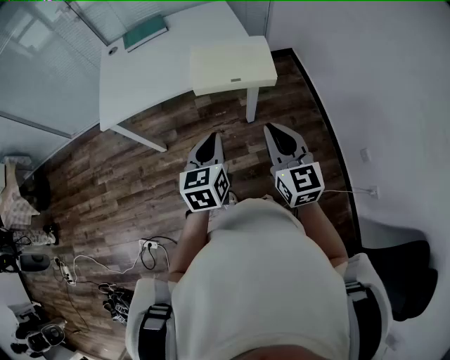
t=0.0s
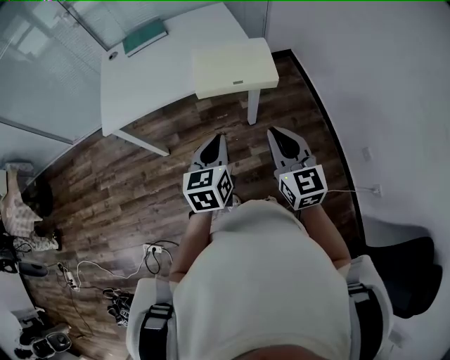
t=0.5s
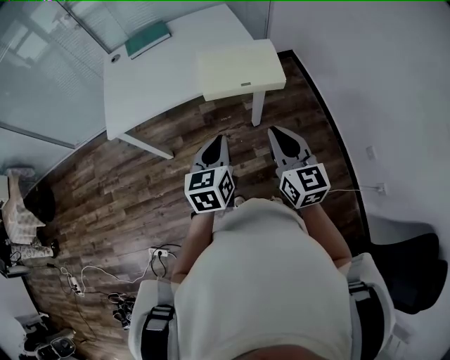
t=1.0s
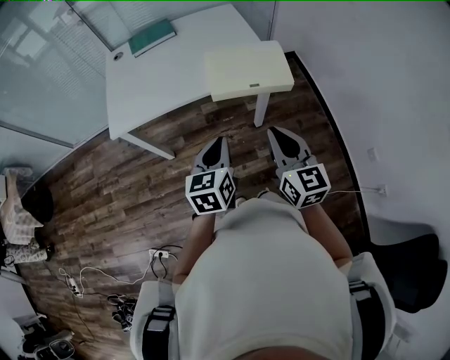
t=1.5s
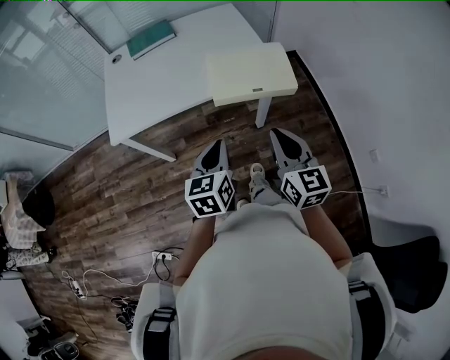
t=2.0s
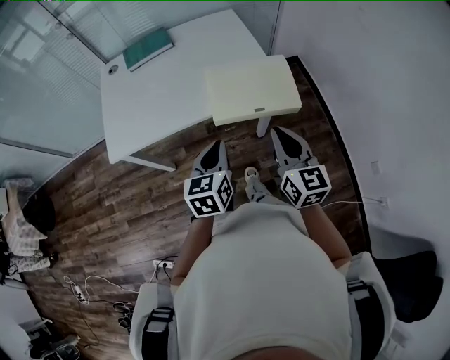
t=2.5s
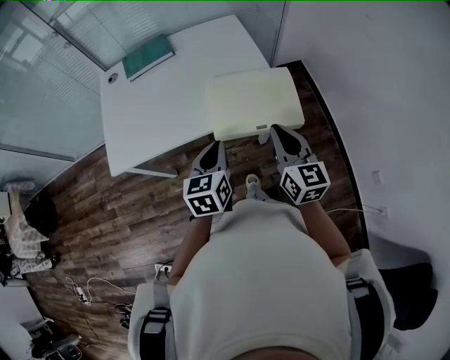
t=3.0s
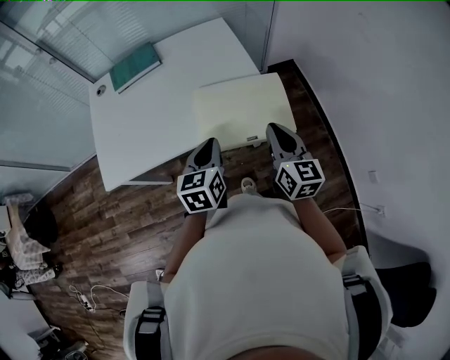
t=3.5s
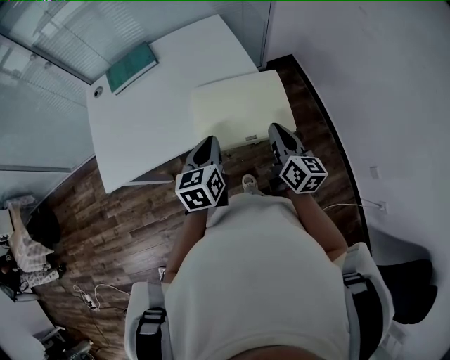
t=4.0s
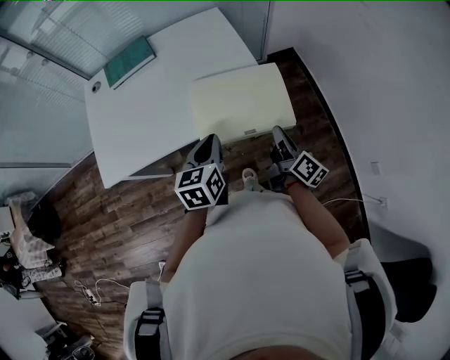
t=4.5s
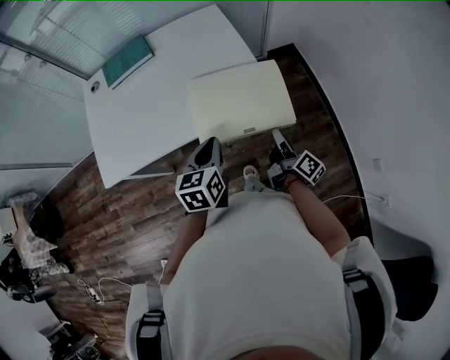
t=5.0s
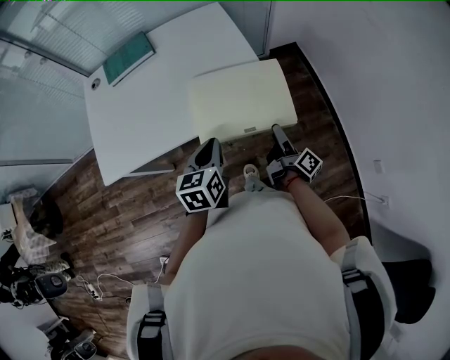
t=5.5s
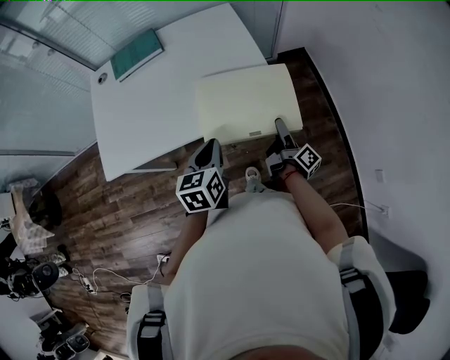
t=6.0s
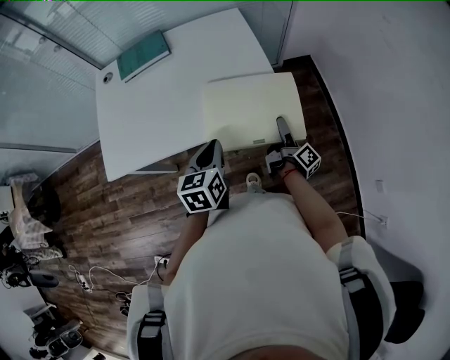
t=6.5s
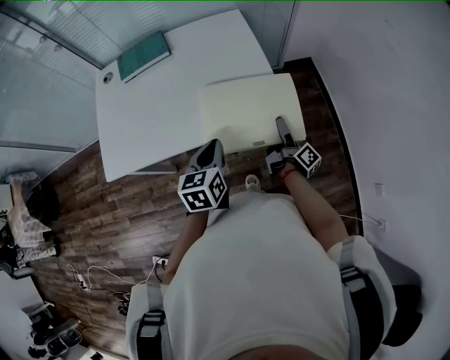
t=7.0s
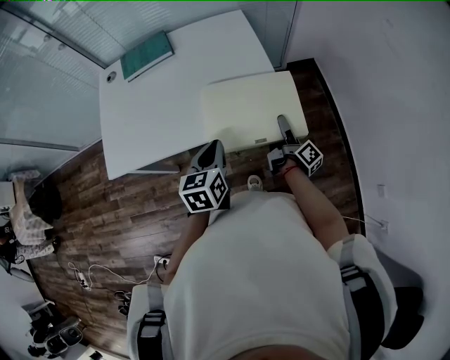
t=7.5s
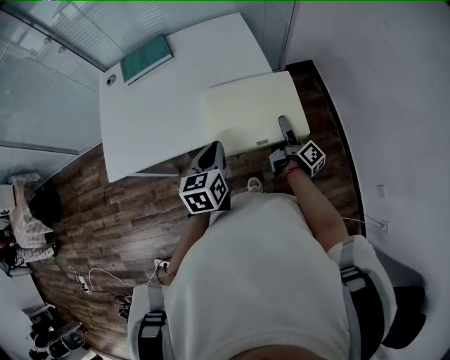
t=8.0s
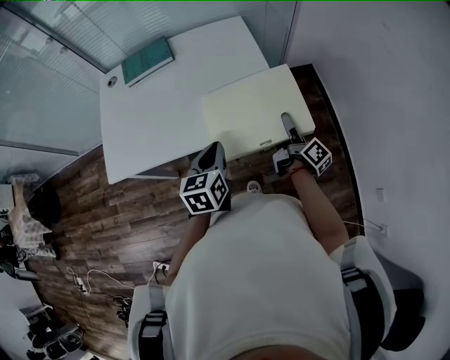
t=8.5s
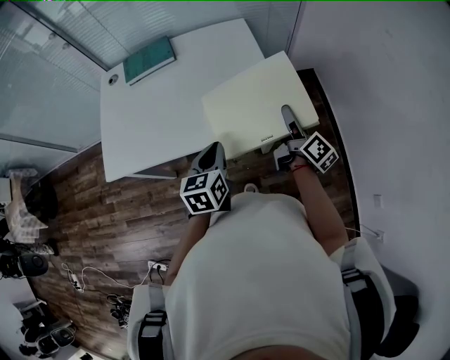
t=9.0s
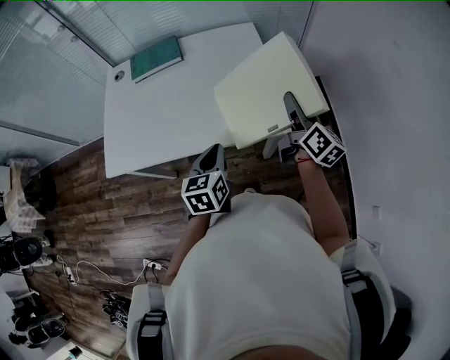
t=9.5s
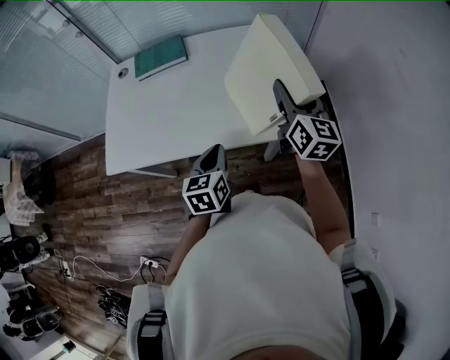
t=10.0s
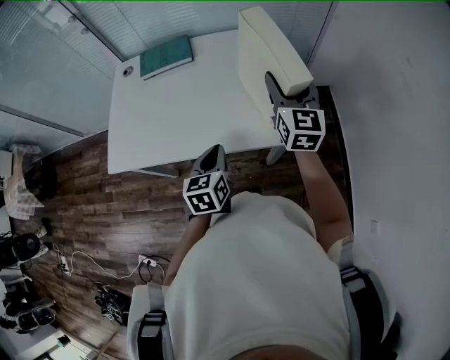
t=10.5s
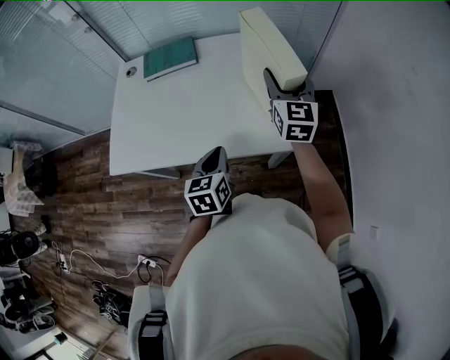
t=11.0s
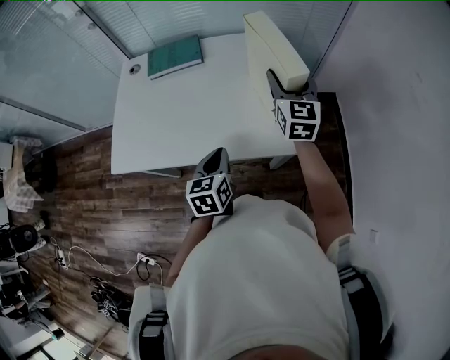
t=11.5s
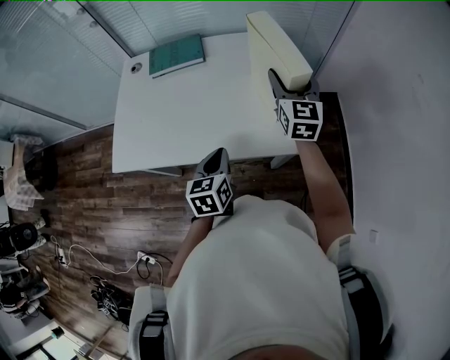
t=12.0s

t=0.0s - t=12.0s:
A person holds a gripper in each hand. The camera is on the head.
t=0.0s - t=2.0s: The two grippers go approximately 5 cm to the left.
t=2.0s - t=4.0s: Both grippers move forward, approximately 20 cm. The right gripper changes its angle by about 30 degrees.
t=4.0s - t=6.0s: The right gripper moves downward, about 15 cm, rotates around the line of its fingers by approximately 60 degrees, clockwise from behind, and opens its fingers.
t=6.0s - t=8.0s: The right gripper ends up approximately 5 cm from where it was, and closes its fingers.
t=8.0s - t=10.0s: The right gripper moves upward and forward, roughly 25 cm, and twists roughly 70 degrees counterclockwise, seen from behind.
t=10.0s - t=12.0s: The right gripper moves forward and to the left, about 10 cm, and rotates about 20 degrees.

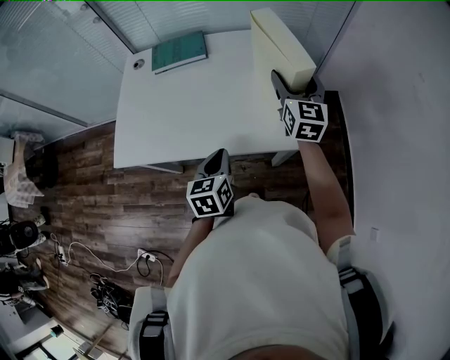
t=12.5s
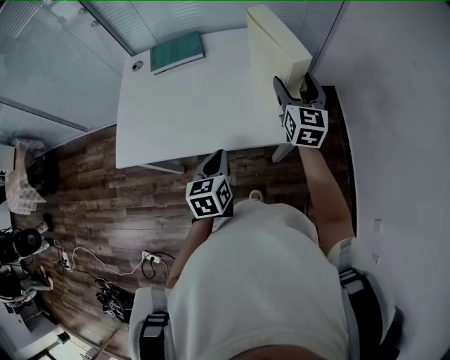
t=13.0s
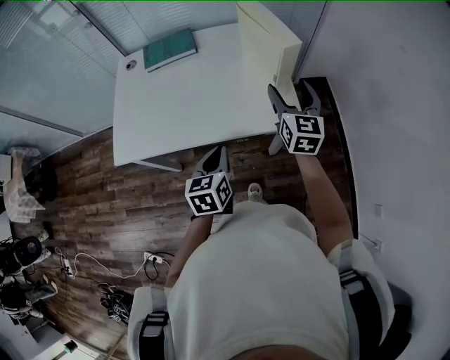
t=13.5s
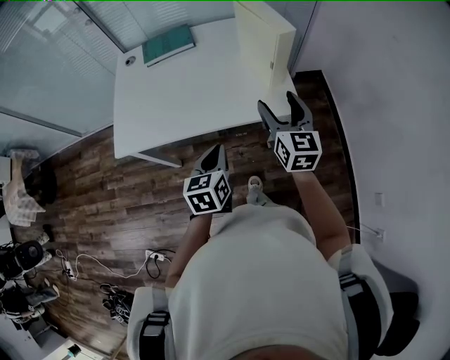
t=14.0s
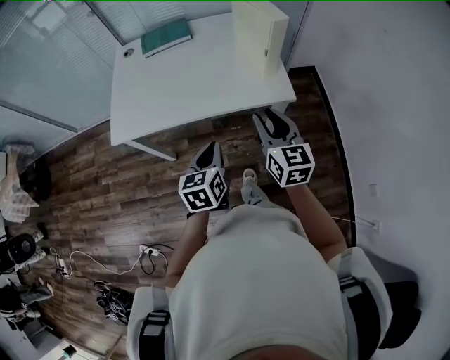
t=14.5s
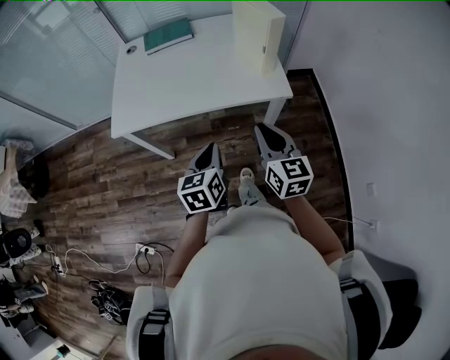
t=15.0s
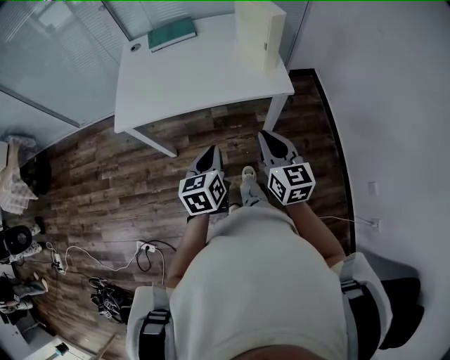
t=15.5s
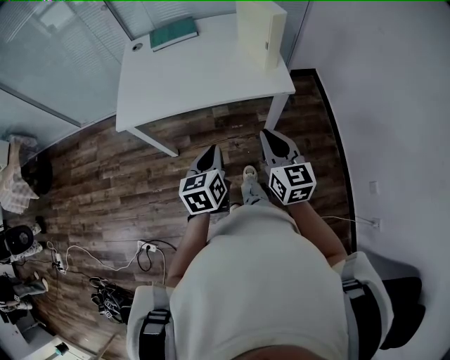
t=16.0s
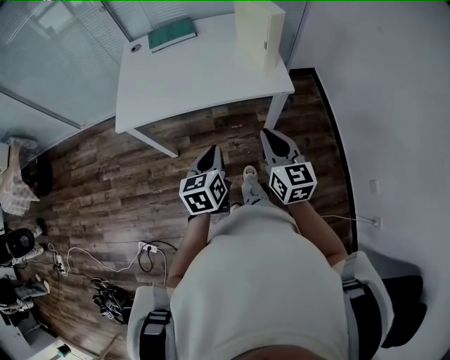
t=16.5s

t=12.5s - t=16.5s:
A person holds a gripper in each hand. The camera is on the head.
t=12.5s - t=14.5s: The left gripper is displaced backward by approximately 15 cm, while the right gripper travels backward by about 30 cm, and closes.
t=14.5s - t=16.5s: Both grippers travel together backward, some 10 cm.

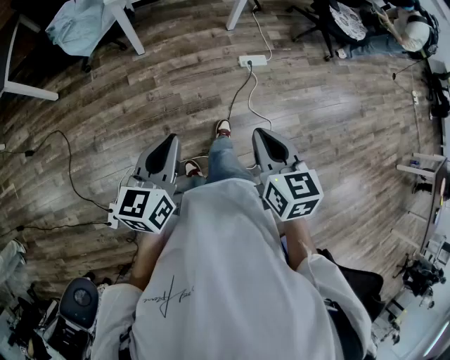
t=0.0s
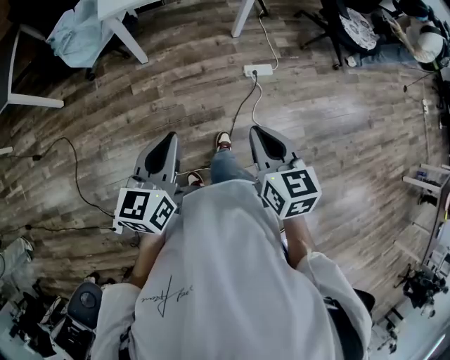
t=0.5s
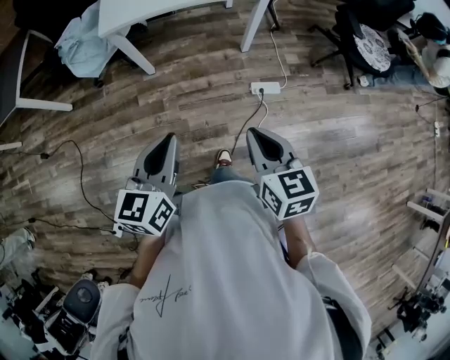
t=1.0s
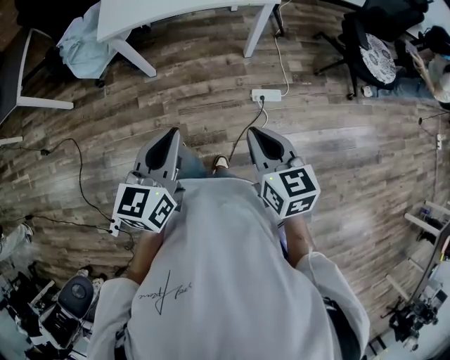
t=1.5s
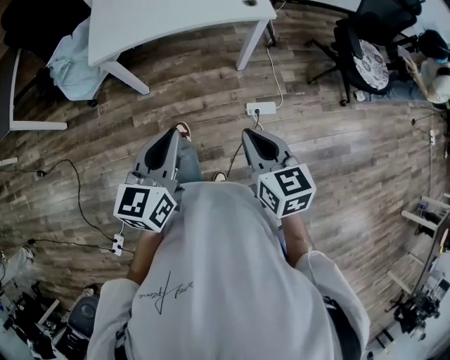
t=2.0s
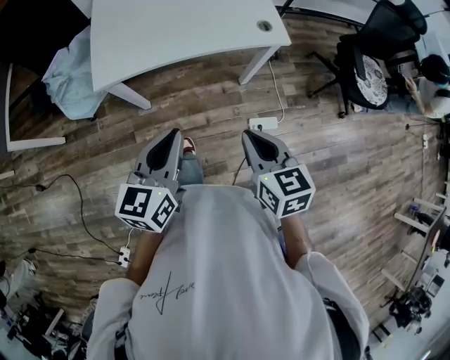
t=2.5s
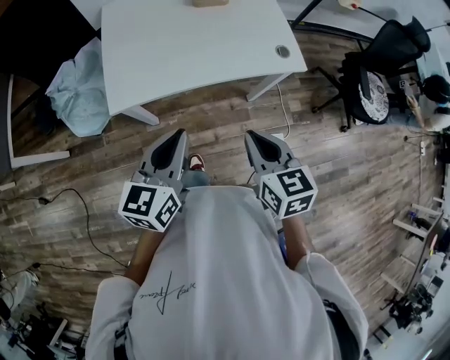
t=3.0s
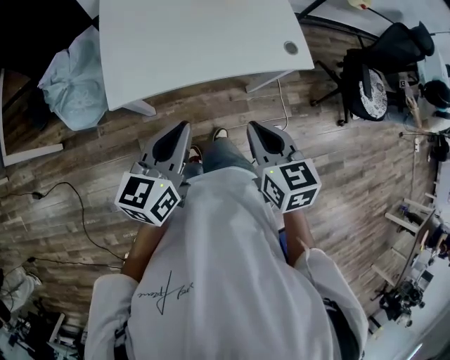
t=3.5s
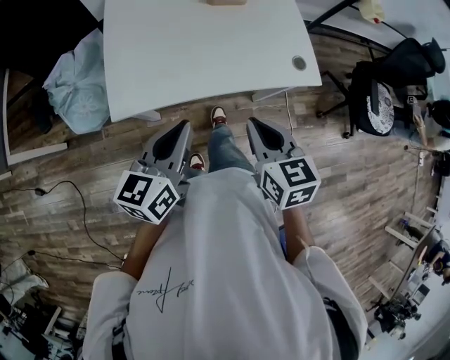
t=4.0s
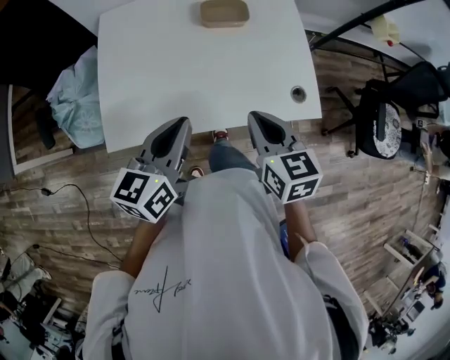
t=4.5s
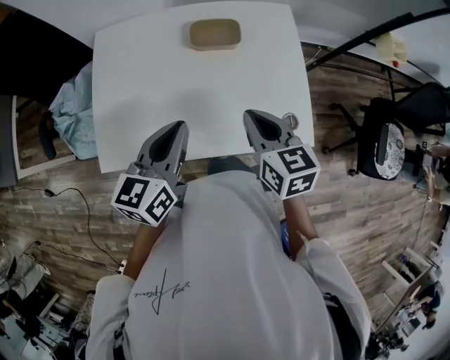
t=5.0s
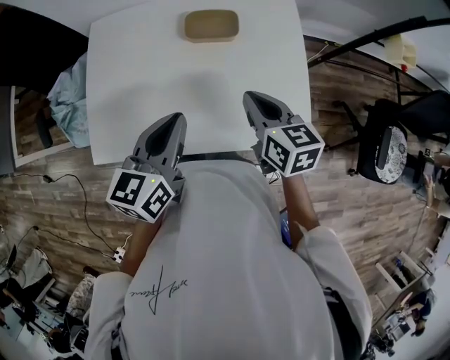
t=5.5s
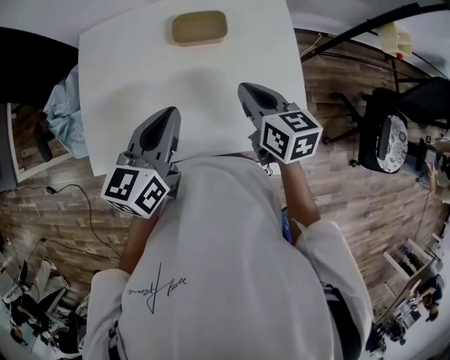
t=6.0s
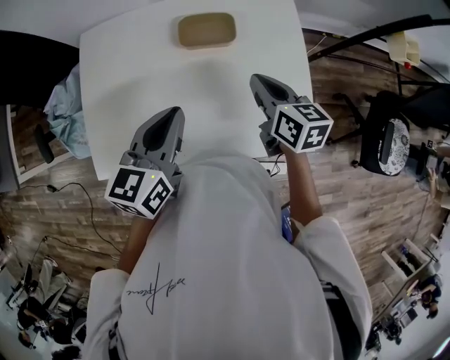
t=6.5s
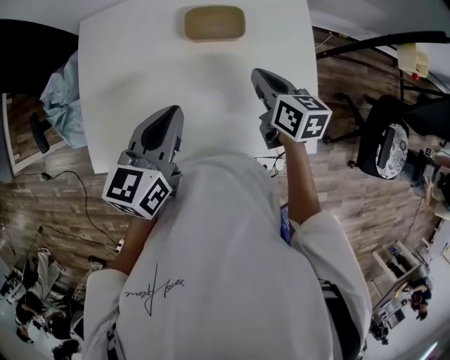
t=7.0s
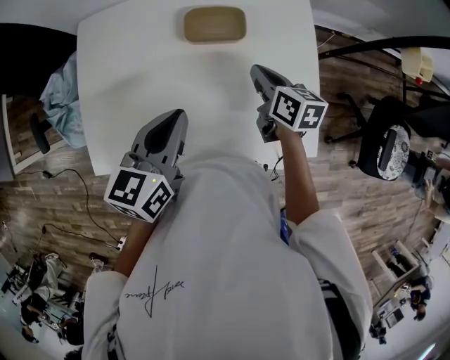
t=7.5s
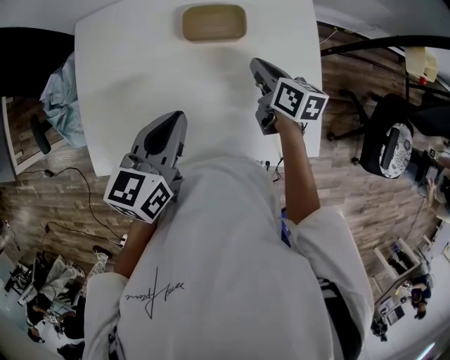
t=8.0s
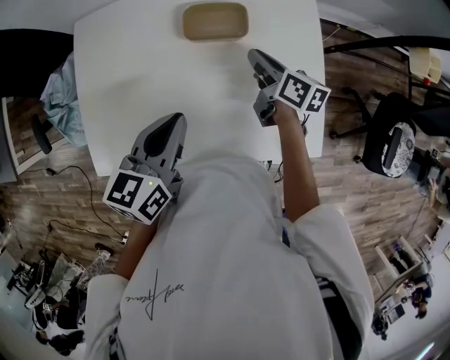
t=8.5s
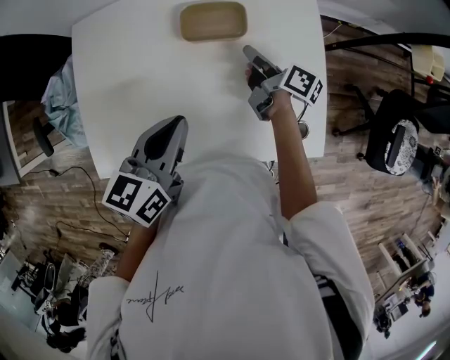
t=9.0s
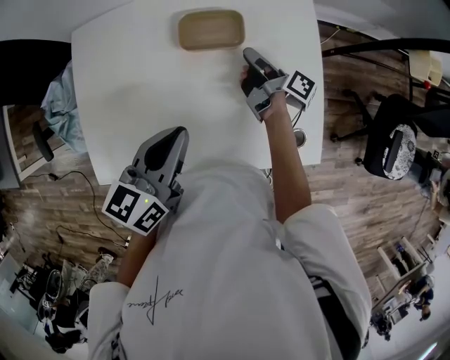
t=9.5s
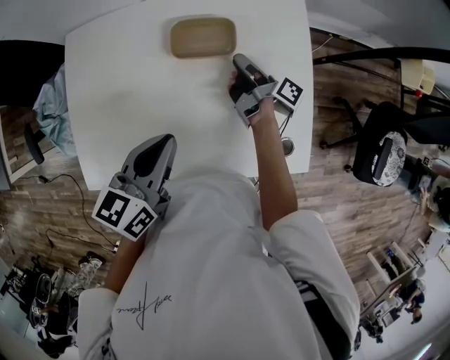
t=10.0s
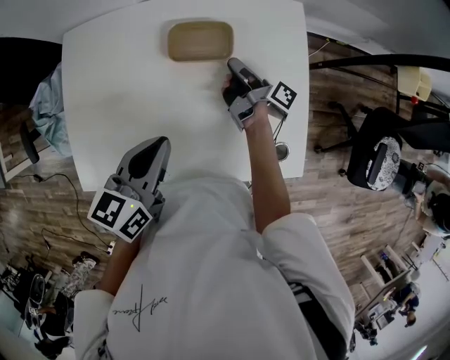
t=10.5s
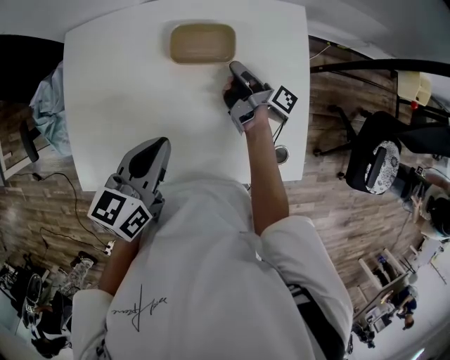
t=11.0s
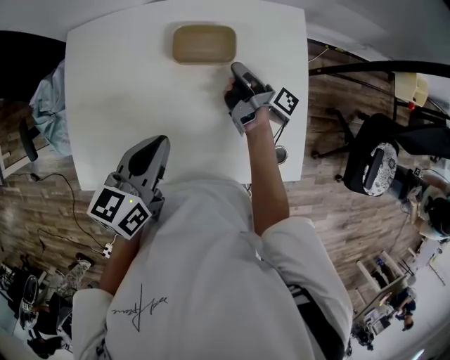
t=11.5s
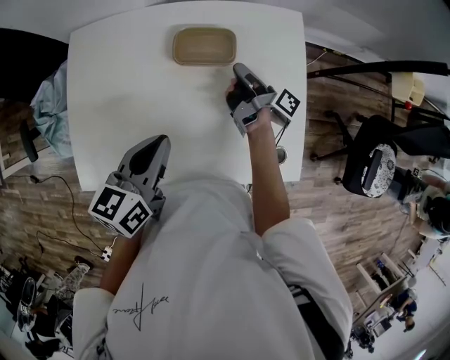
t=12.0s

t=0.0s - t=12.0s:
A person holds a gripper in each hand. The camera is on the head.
t=0.0s - t=2.0s: The grippers both shift forward by some 35 cm.
t=2.0s - t=4.0s: Both grippers travel together forward and to the left, about 35 cm.
t=4.0s - t=6.0s: The grippers both shift forward and to the right by about 30 cm.
t=6.0s - t=8.0s: The right gripper is displaced forward and downward by about 15 cm. The left gripper ends up some 5 cm from where it was.
t=8.0s - t=10.0s: The right gripper travels forward by roughly 5 cm, and twists some 50 degrees clockwise, seen from behind.
t=10.0s - t=12.0s: The right gripper closes its fingers.
